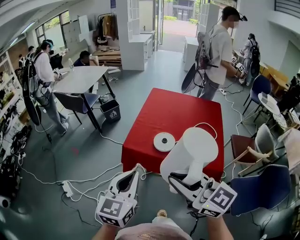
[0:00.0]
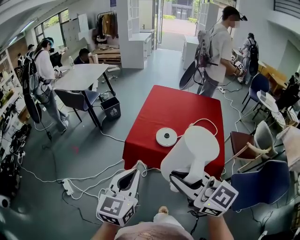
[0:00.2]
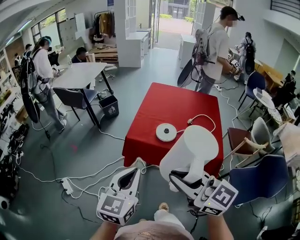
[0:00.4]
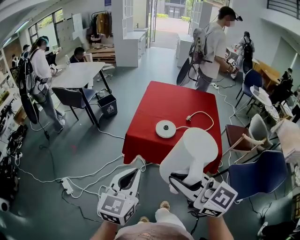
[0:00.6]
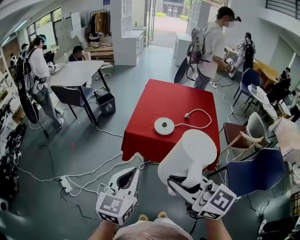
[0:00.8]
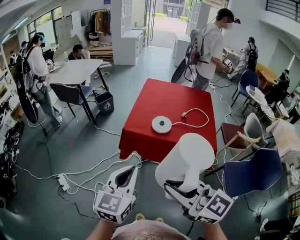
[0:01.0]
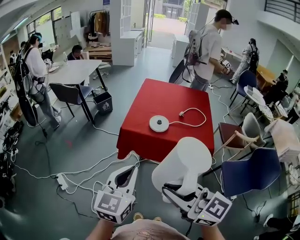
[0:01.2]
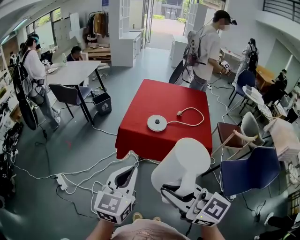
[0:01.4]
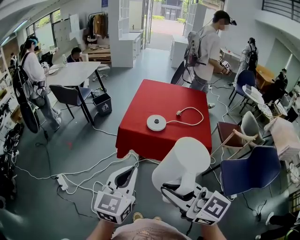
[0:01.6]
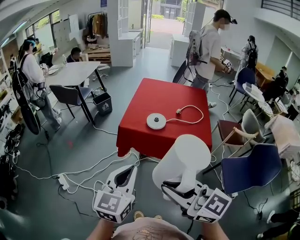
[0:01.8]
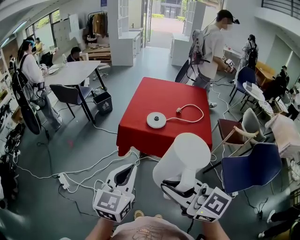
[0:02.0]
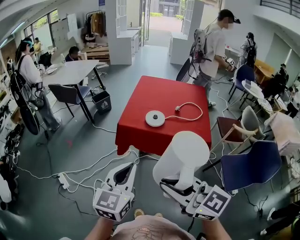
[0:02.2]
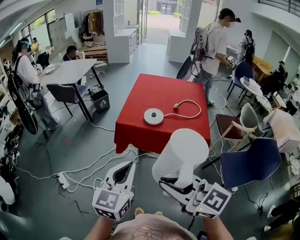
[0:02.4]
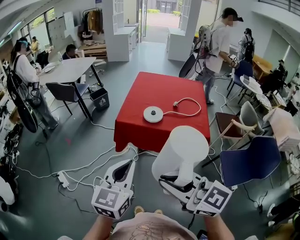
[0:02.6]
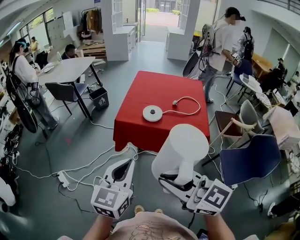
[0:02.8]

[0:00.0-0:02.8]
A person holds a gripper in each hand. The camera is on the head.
0:00.0 to 0:01.4: The left gripper is displaced backward by approximately 10 cm, while the right gripper moves backward and to the left, roughly 20 cm.
0:01.4 to 0:02.8: The grippers make only small movements.

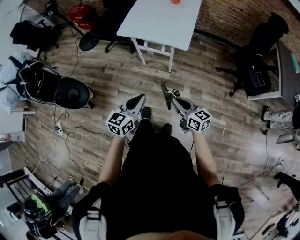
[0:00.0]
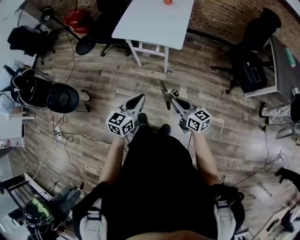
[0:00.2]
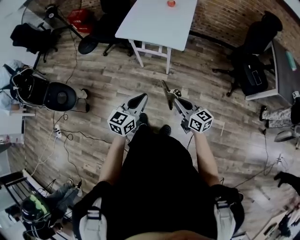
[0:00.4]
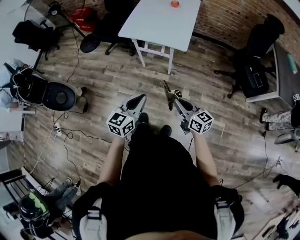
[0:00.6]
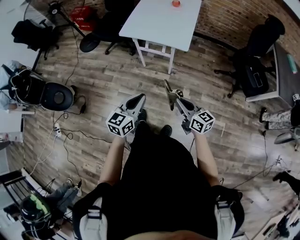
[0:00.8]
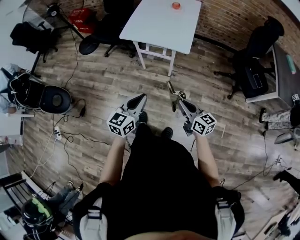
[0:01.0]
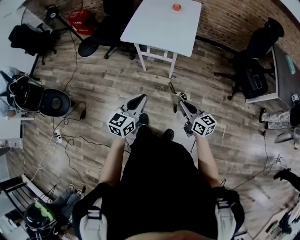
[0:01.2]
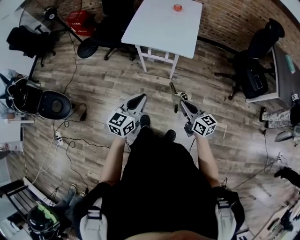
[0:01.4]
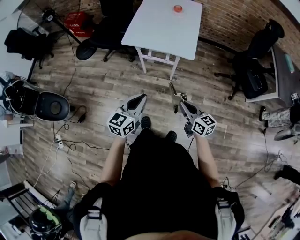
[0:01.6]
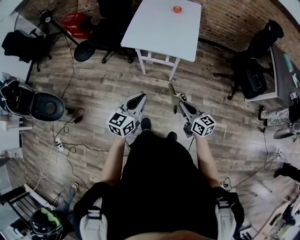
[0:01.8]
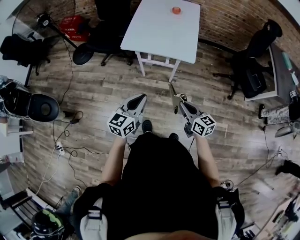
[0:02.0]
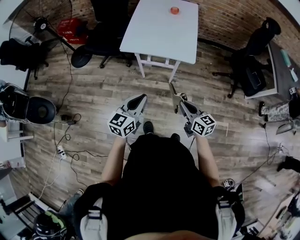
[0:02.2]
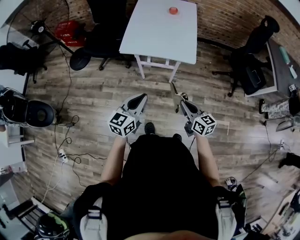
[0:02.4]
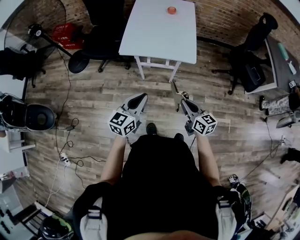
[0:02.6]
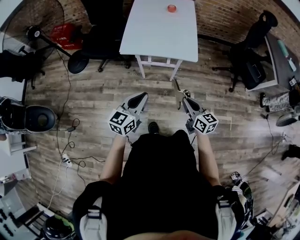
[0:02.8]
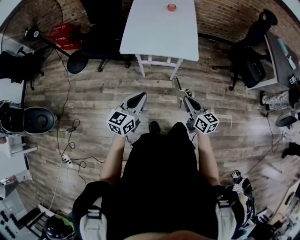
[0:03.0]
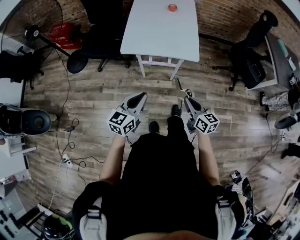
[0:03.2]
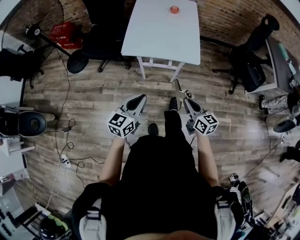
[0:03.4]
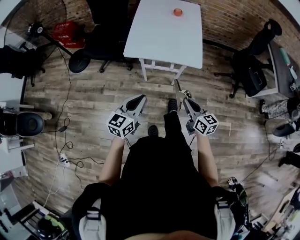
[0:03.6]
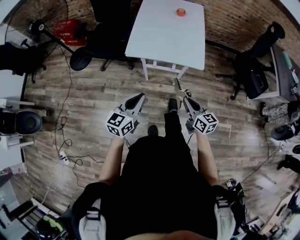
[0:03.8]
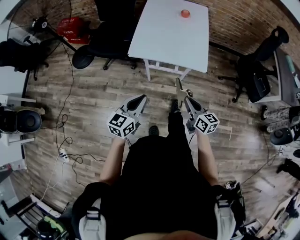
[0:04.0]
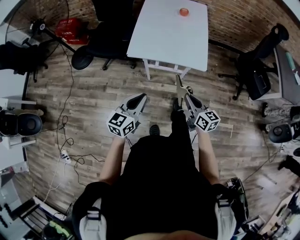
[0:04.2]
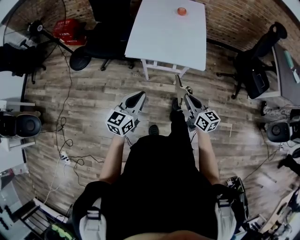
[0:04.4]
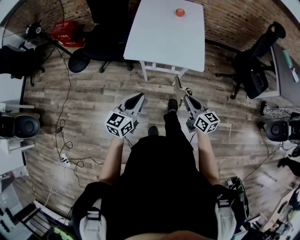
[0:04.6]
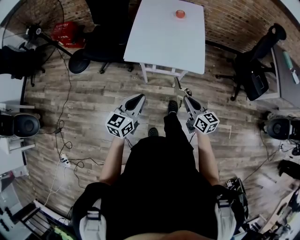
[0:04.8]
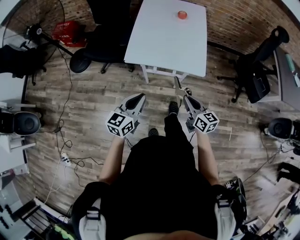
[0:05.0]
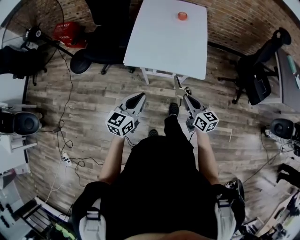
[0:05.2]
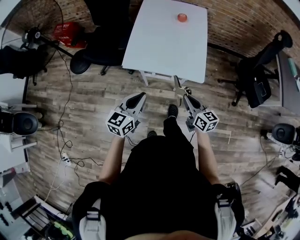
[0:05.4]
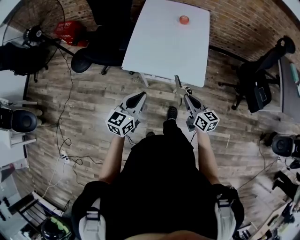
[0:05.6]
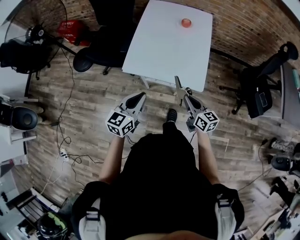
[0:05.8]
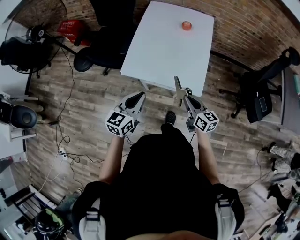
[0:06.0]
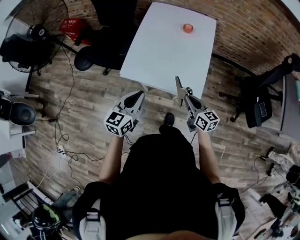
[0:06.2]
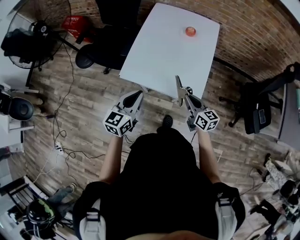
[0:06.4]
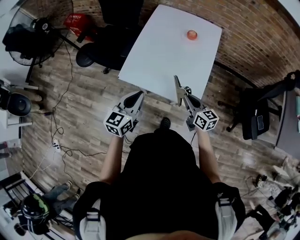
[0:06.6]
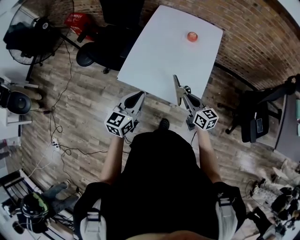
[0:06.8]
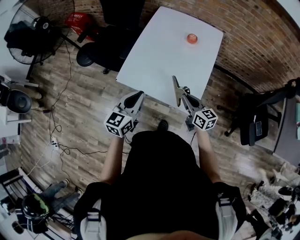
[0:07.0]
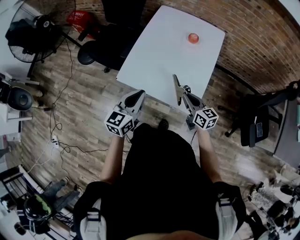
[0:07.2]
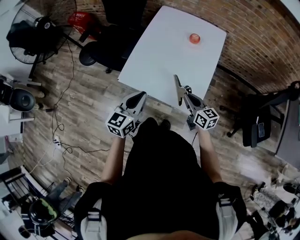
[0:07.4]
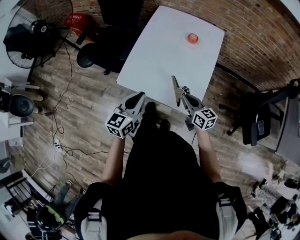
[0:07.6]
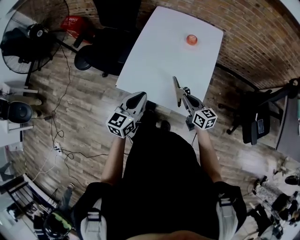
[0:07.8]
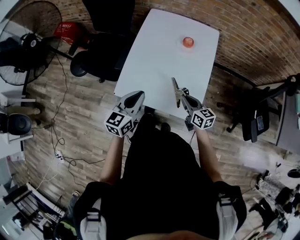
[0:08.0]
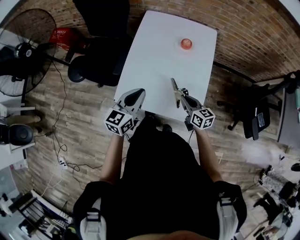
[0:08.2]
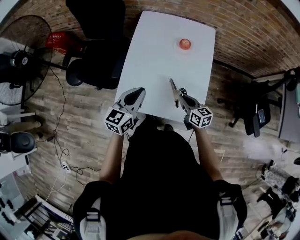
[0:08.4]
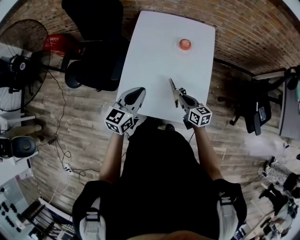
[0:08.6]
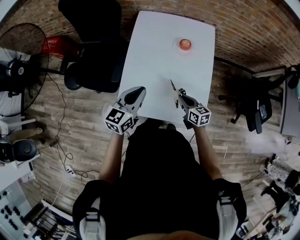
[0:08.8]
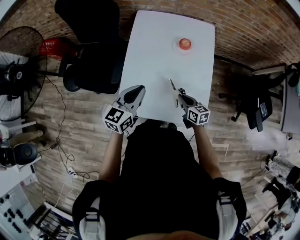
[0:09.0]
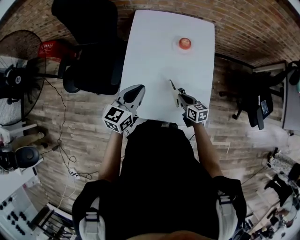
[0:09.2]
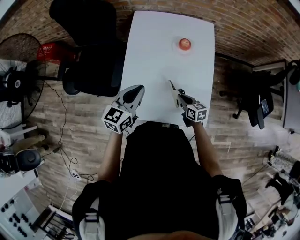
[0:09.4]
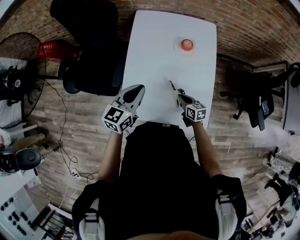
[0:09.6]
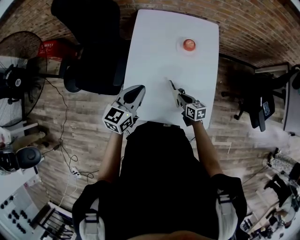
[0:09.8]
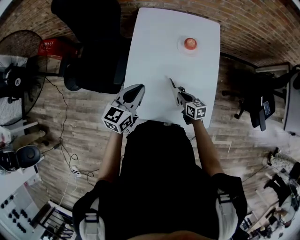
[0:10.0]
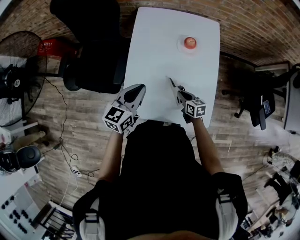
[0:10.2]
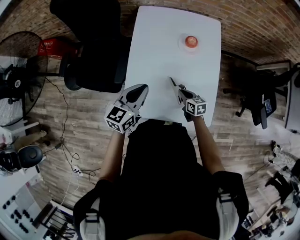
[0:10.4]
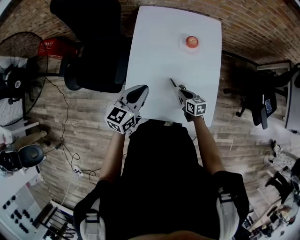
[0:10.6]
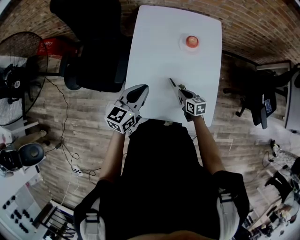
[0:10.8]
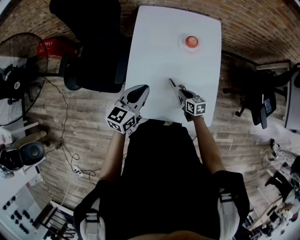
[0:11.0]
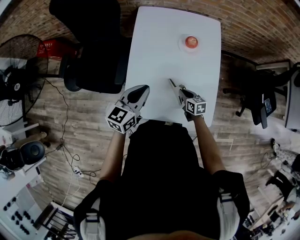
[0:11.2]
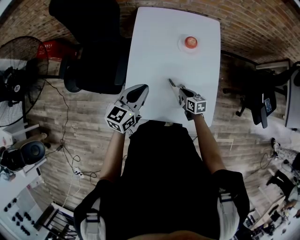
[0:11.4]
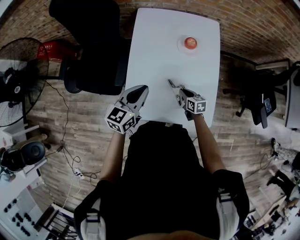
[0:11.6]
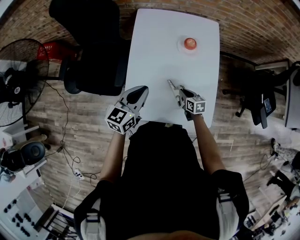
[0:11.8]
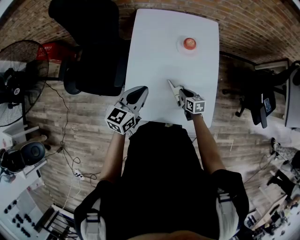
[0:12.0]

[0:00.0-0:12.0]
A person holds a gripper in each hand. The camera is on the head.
0:00.0 to 0:01.6: The left gripper moves to the left and forward, roughly 10 cm, while the right gripper travels to the left by approximately 5 cm.
0:01.6 to 0:03.0: Both grippers move to the left and forward, approximately 10 cm.
0:03.0 to 0:04.4: Both grippers move forward, some 5 cm.
0:04.4 to 0:06.0: The right gripper travels forward by roughly 20 cm. The left gripper travels forward and to the right by some 20 cm.
0:06.0 to 0:07.6: The right gripper shifts some 15 cm forward. Meanwhile the left gripper goes roughly 10 cm forward and to the right.
0:07.6 to 0:09.0: The left gripper goes roughly 20 cm forward, while the right gripper moves forward and downward, some 15 cm.
0:09.0 to 0:10.4: The right gripper is displaced downward by some 5 cm.
0:10.4 to 0:12.0: The grippers move only a little.

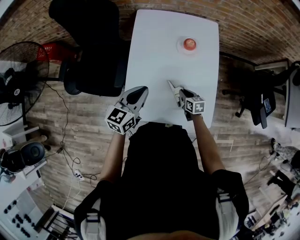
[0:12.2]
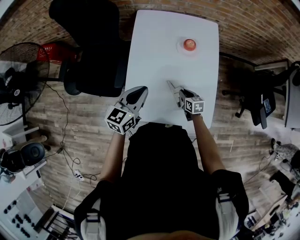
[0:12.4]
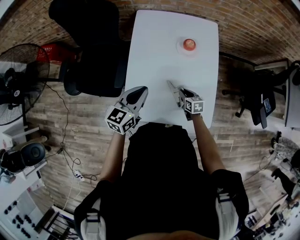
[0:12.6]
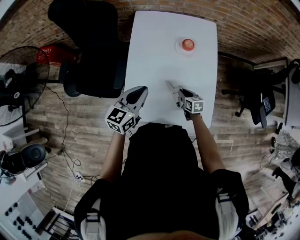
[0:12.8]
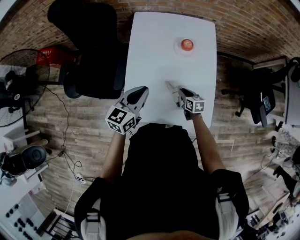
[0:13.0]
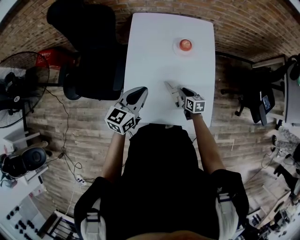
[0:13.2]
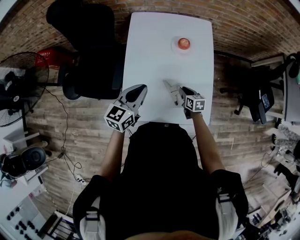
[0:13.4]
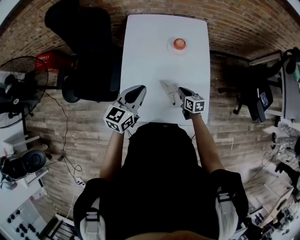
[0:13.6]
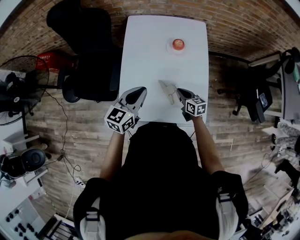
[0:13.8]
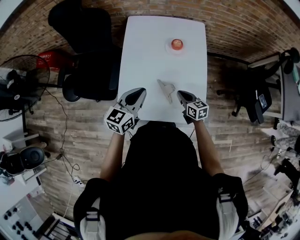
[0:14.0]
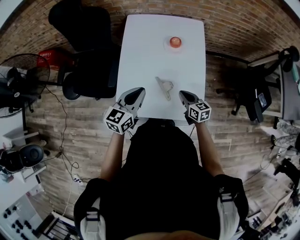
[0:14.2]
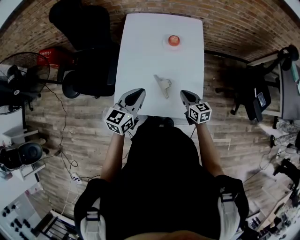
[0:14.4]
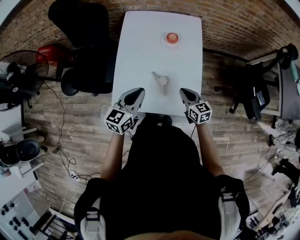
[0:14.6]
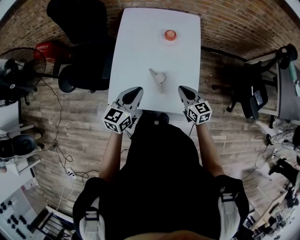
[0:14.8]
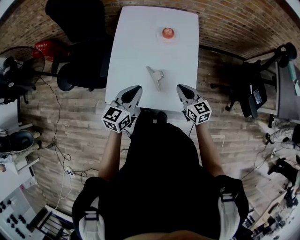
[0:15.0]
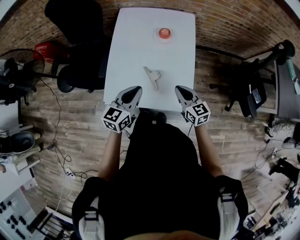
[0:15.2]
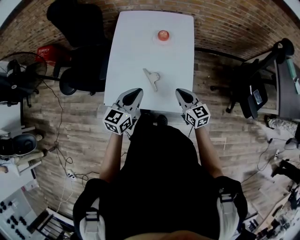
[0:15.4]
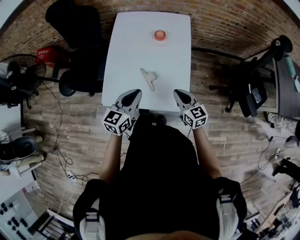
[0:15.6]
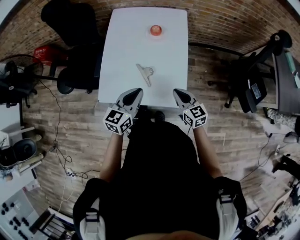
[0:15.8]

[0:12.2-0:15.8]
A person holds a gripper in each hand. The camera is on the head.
0:12.2 to 0:14.0: The left gripper ends up approximately 5 cm from where it was, while the right gripper shifts about 10 cm upward.
0:14.0 to 0:15.8: The left gripper shifts approximately 15 cm to the right and backward, while the right gripper moves backward, to the right and upward, about 20 cm.

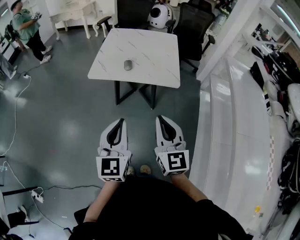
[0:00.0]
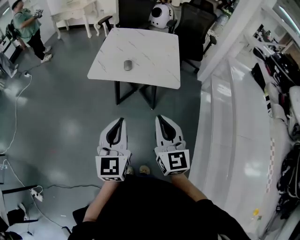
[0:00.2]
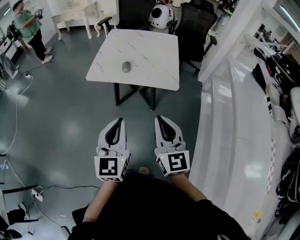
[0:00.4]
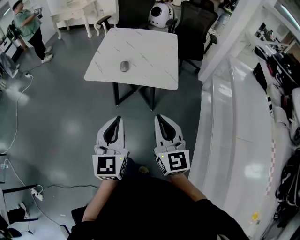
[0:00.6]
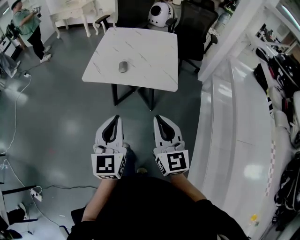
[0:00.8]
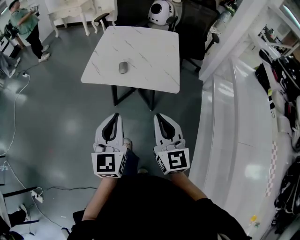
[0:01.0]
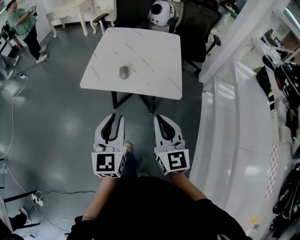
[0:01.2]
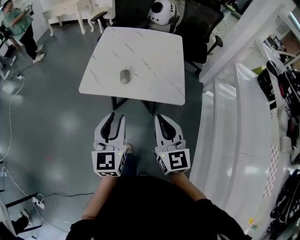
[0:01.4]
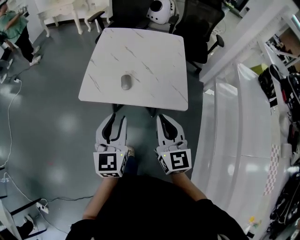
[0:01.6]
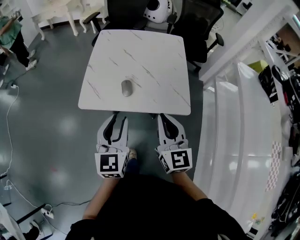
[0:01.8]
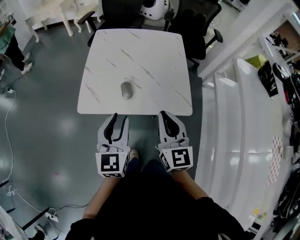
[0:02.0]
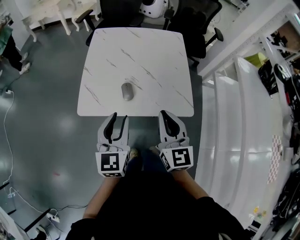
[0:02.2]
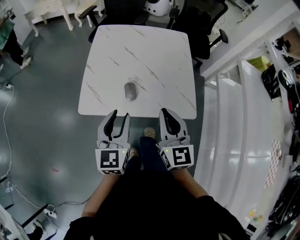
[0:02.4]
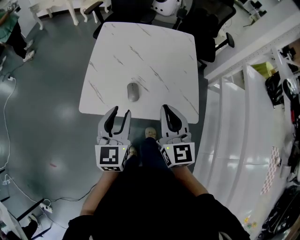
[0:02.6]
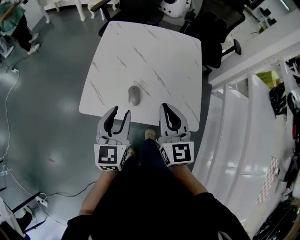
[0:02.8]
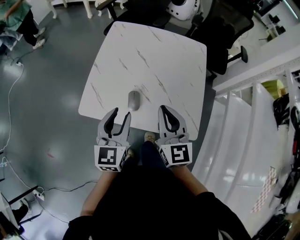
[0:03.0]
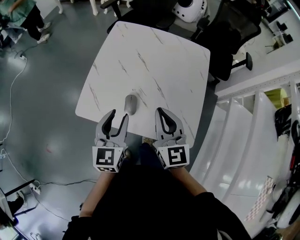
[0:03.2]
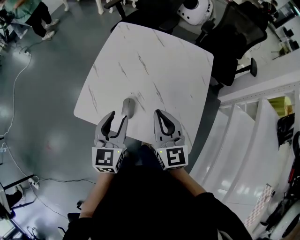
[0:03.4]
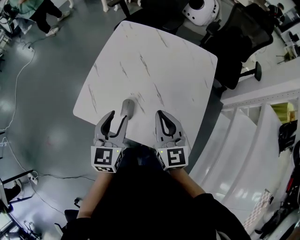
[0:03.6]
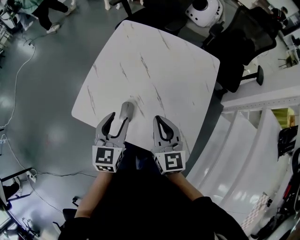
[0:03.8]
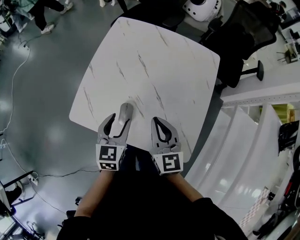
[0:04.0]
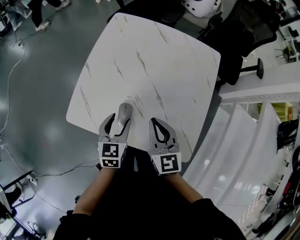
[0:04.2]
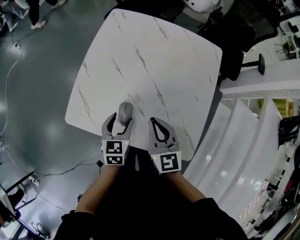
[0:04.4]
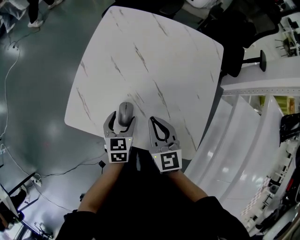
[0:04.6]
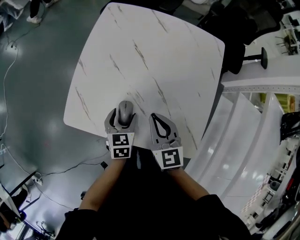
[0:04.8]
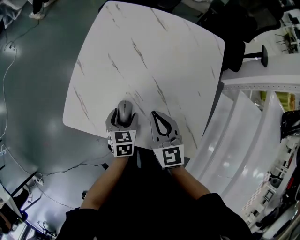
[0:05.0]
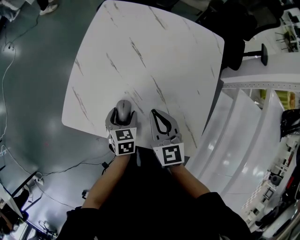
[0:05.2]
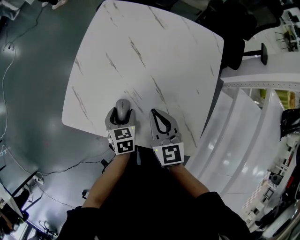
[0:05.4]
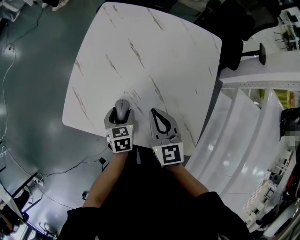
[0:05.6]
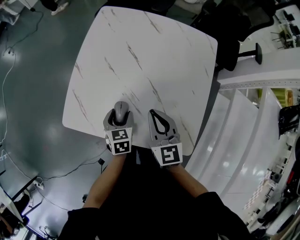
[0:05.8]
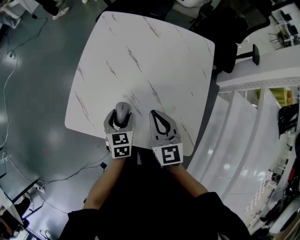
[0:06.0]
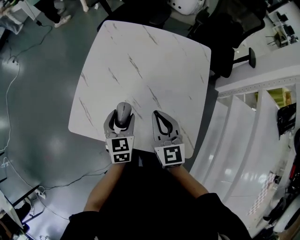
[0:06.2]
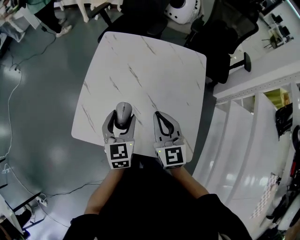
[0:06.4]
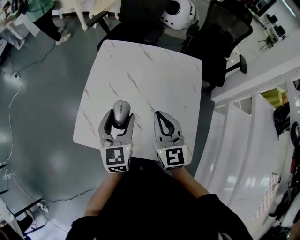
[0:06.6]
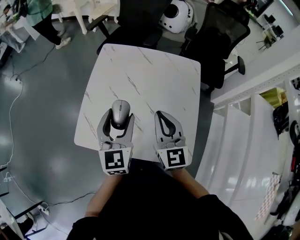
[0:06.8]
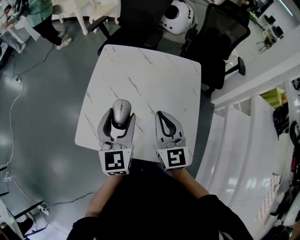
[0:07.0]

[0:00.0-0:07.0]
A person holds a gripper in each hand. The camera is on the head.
0:00.0 to 0:01.4: The grippers both shift forward by roughly 20 cm.
0:01.4 to 0:02.8: Both grippers travel together forward, approximately 25 cm.
0:02.8 to 0:04.2: The grippers both shift downward and forward by approximately 15 cm. The left gripper swivels some 20 degrees.
0:04.2 to 0:05.6: The left gripper moves downward, approximately 10 cm.
0:05.6 to 0:07.0: The left gripper goes roughly 30 cm upward, and tilts its fingers roughly 40 degrees upward, while the right gripper shifts some 15 cm upward.
